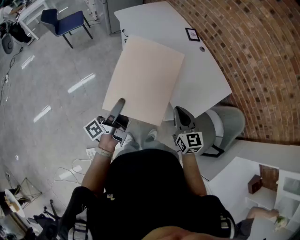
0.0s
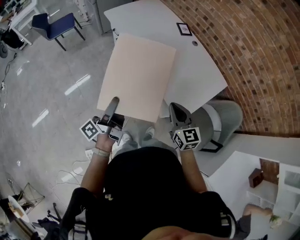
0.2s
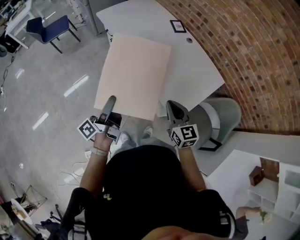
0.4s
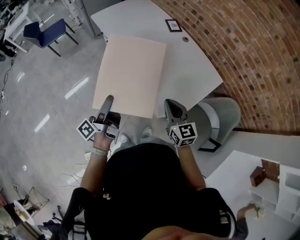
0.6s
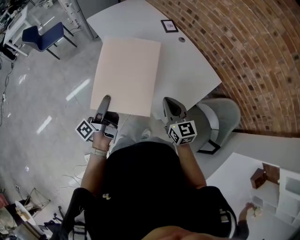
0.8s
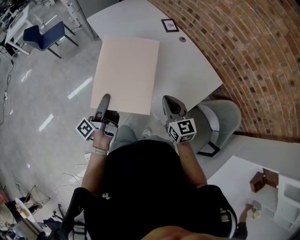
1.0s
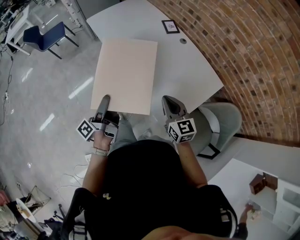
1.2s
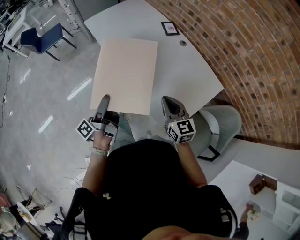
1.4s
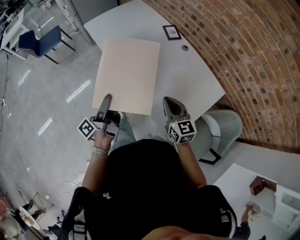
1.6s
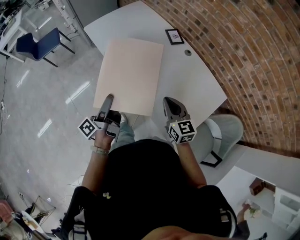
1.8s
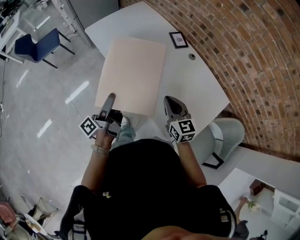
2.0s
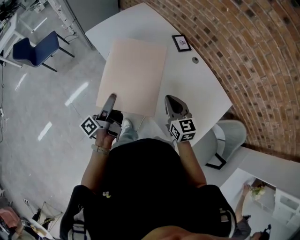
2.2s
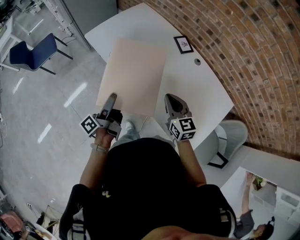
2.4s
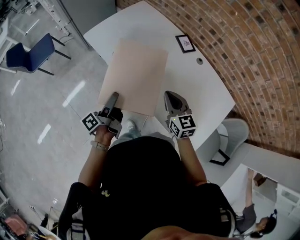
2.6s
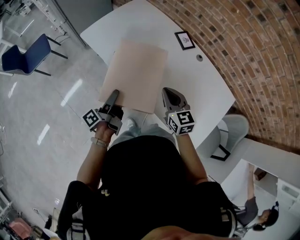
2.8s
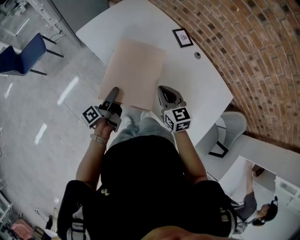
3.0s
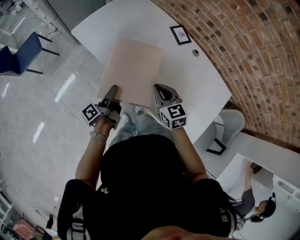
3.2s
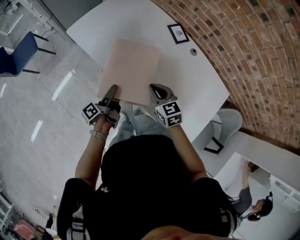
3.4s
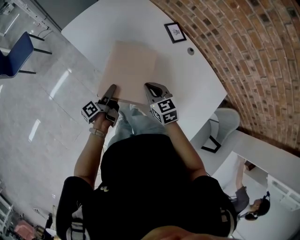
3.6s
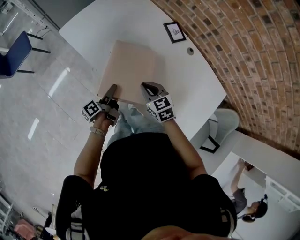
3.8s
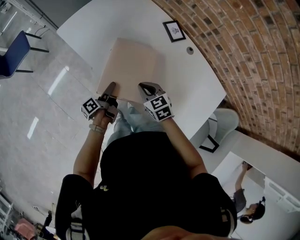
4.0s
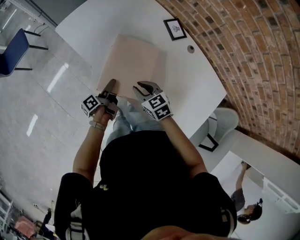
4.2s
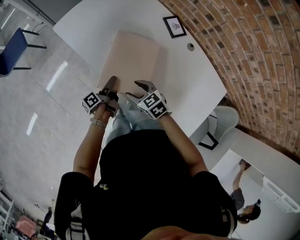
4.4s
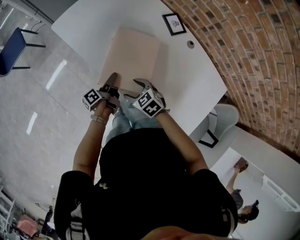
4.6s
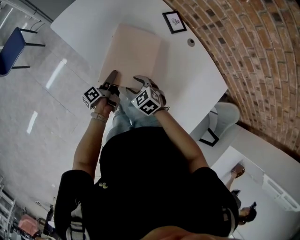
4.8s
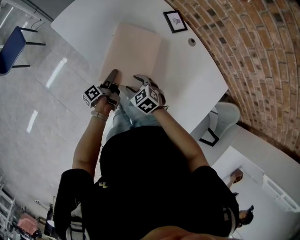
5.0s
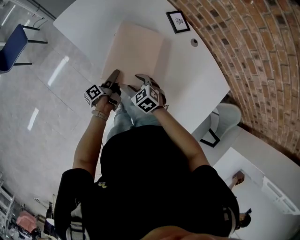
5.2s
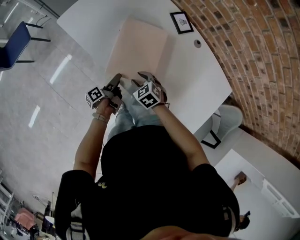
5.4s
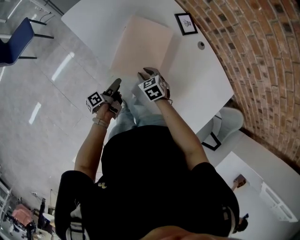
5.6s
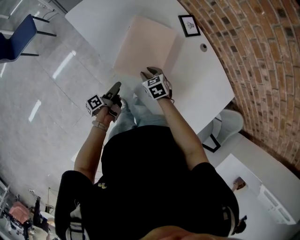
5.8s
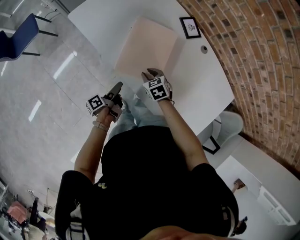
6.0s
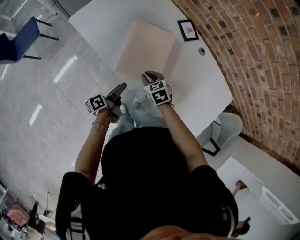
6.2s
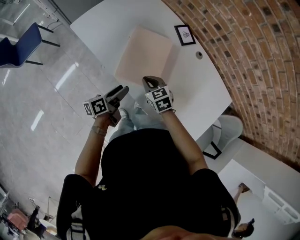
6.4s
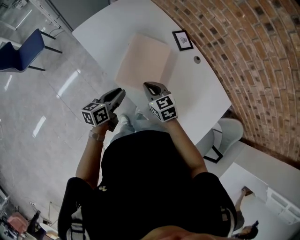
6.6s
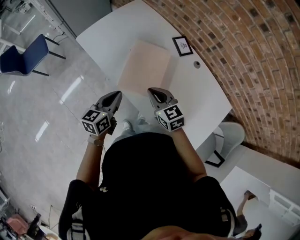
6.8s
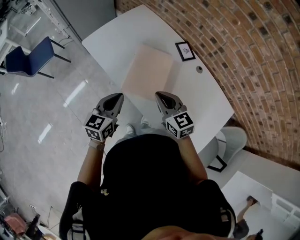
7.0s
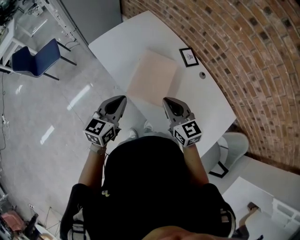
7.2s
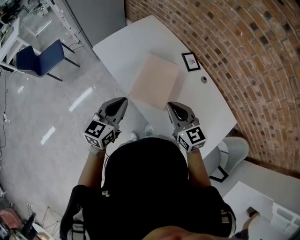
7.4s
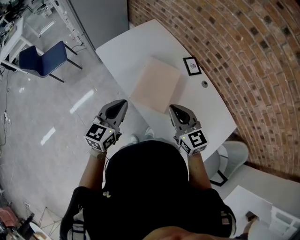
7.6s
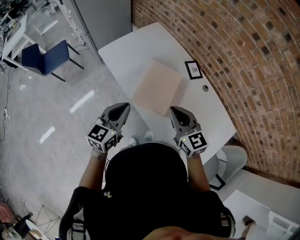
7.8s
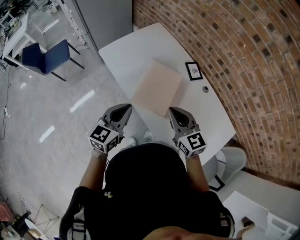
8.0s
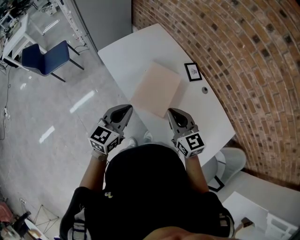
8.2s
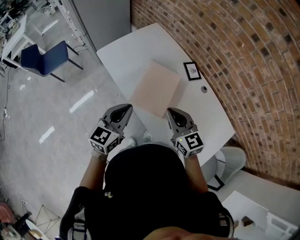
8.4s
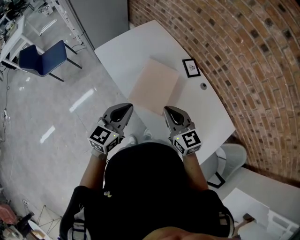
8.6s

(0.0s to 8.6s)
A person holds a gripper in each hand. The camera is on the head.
0.0s - 1.4s: The right gripper moves some 20 cm.
1.4s - 2.8s: The right gripper shifts by roughly 30 cm.
2.8s - 4.4s: The right gripper heads downward, covering roughly 15 cm, rotates some 30 degrees, and opens its fingers.
4.4s - 5.8s: The right gripper is displaced downward by some 5 cm, and closes its fingers.
5.8s - 7.2s: The right gripper shifts some 30 cm upward, tips its fingers upward by roughly 40 degrees, and closes its fingers.

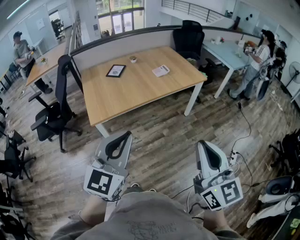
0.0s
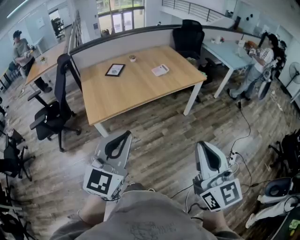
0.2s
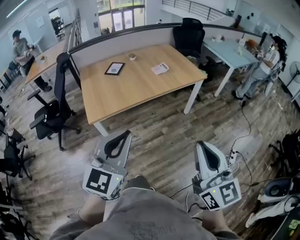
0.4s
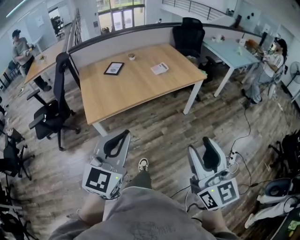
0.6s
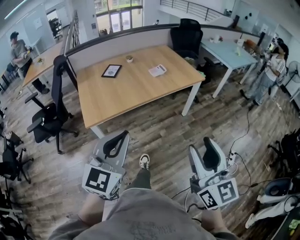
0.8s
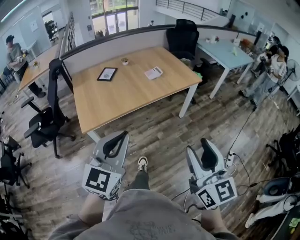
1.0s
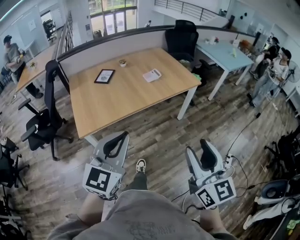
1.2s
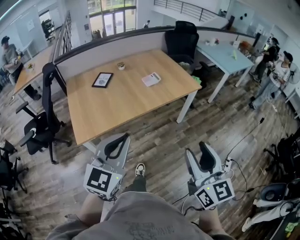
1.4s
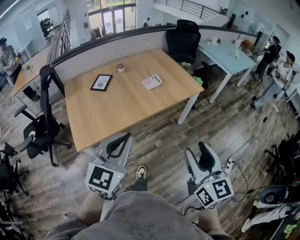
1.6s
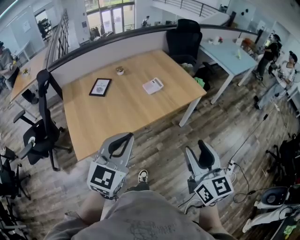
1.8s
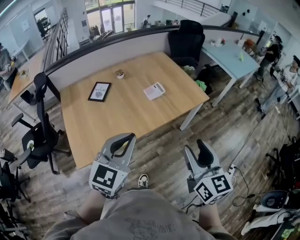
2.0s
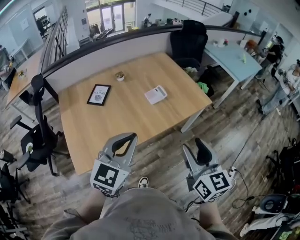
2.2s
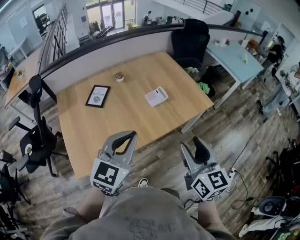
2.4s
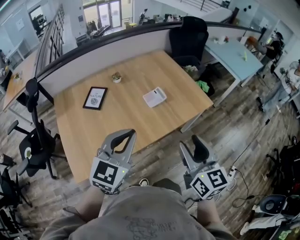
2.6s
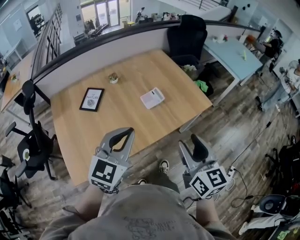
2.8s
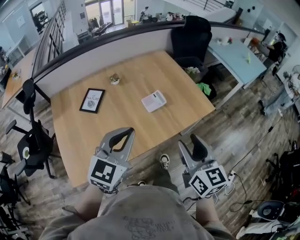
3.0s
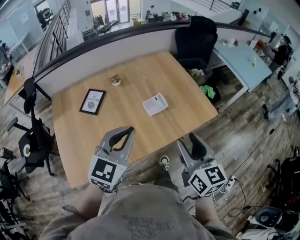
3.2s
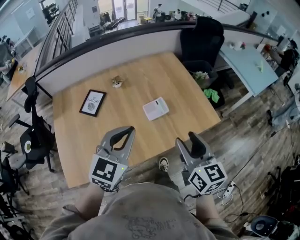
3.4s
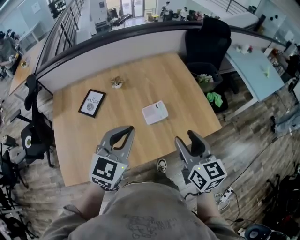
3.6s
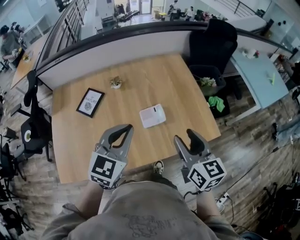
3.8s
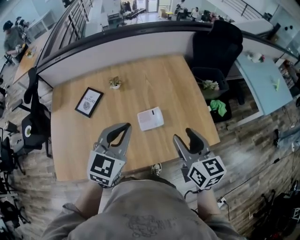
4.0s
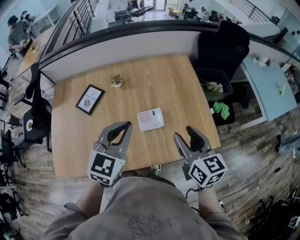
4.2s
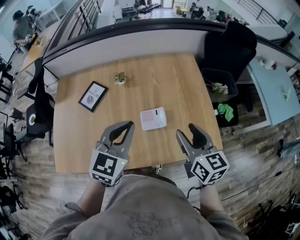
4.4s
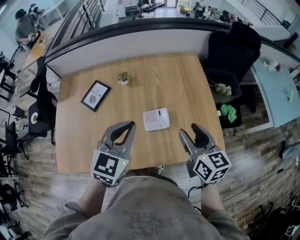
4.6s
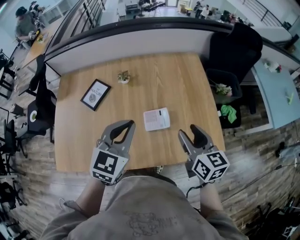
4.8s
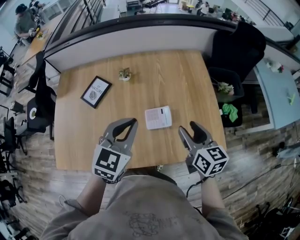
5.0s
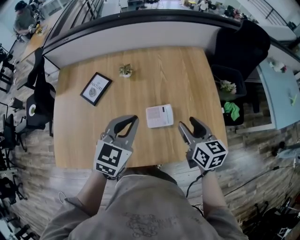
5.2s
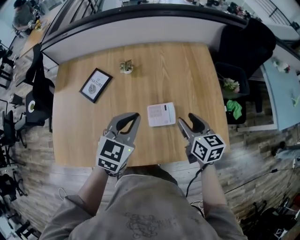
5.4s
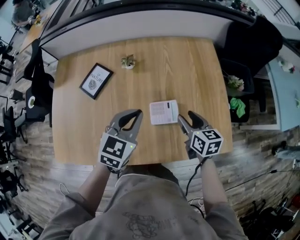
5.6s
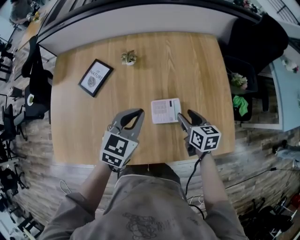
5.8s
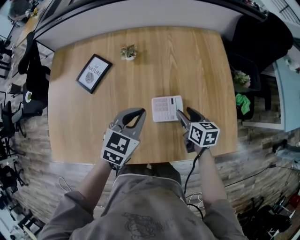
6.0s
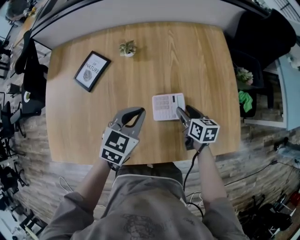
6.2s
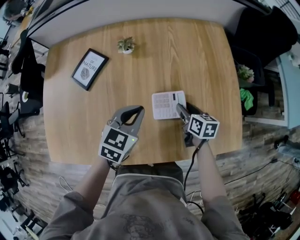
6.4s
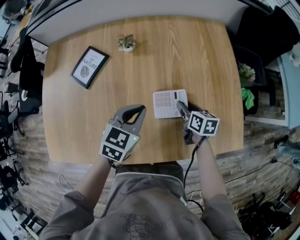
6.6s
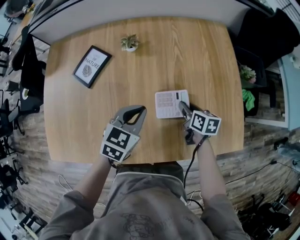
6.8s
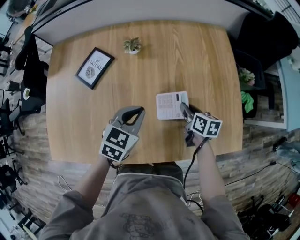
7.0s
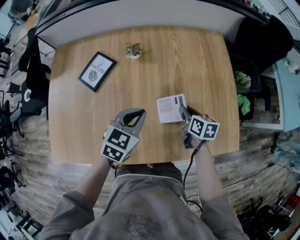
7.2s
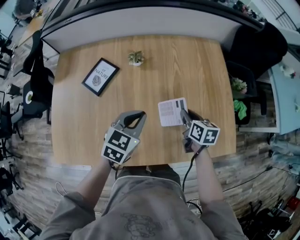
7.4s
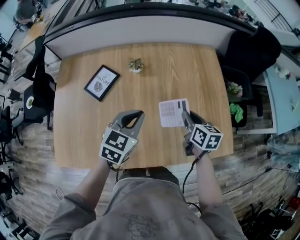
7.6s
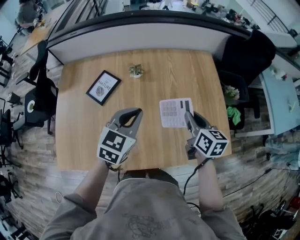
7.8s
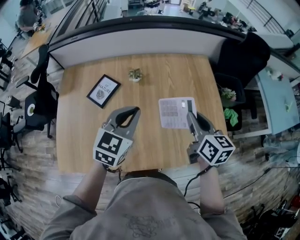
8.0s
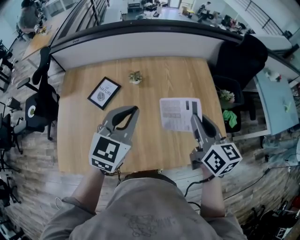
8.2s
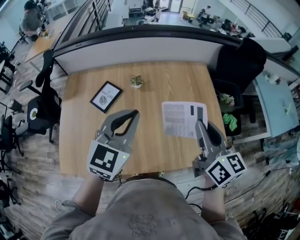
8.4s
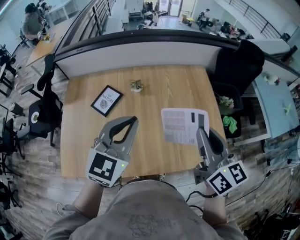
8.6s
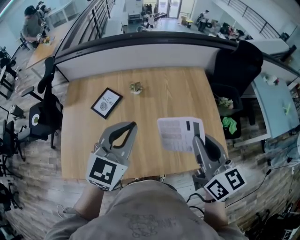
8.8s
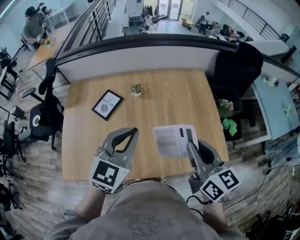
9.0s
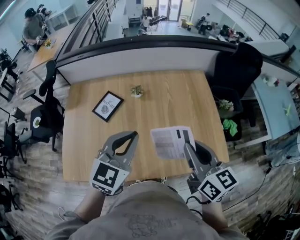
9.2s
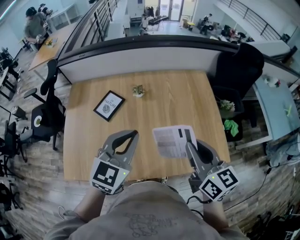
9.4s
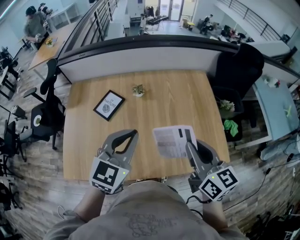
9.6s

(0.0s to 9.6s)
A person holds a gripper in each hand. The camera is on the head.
0.0s - 1.6s: Both grippers travel together forward, roughly 25 cm. The right gripper opens up.
1.6s - 3.2s: The grippers both shift forward by about 35 cm.
3.2s - 4.8s: The two grippers go approximately 25 cm forward and to the right. The right gripper changes its angle by roughly 20 degrees. The left gripper rotates some 20 degrees.
4.8s - 6.4s: The left gripper moves downward, some 20 cm; the right gripper shifts roughly 30 cm downward and forward, and rotates about 30 degrees.
6.4s - 8.0s: The right gripper shifts some 30 cm upward, swivels approximately 30 degrees, and closes. Meanwhile the left gripper moves upward, some 20 cm.
8.0s - 9.6s: The right gripper moves backward and upward, roughly 15 cm. Meanwhile the left gripper heads upward and backward, covering approximately 10 cm.

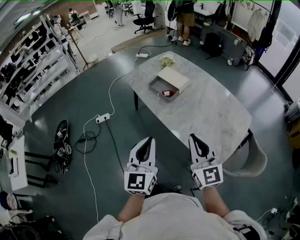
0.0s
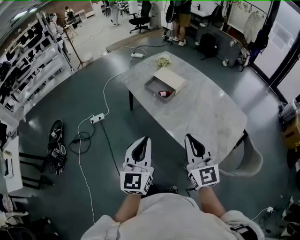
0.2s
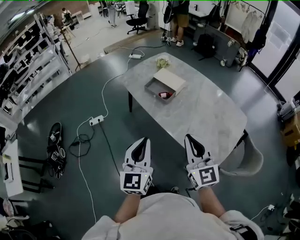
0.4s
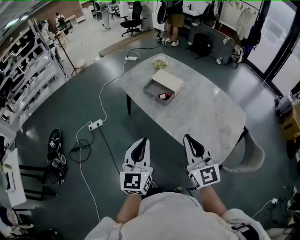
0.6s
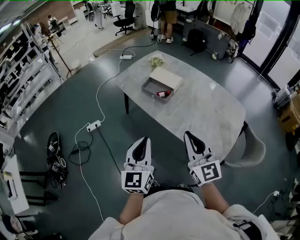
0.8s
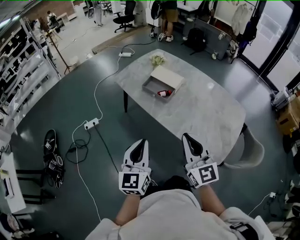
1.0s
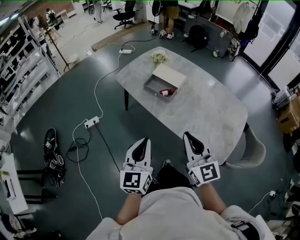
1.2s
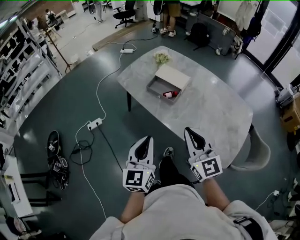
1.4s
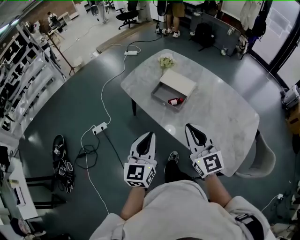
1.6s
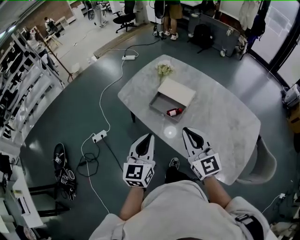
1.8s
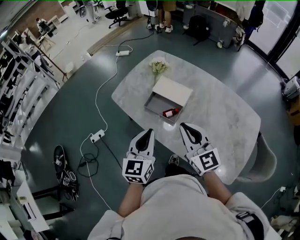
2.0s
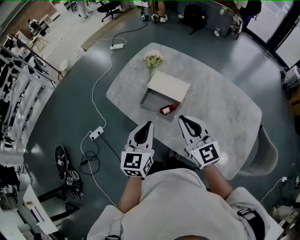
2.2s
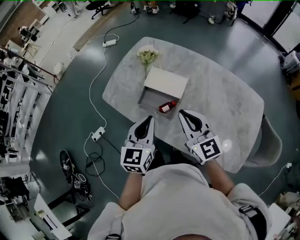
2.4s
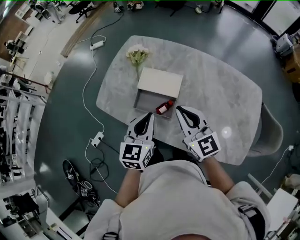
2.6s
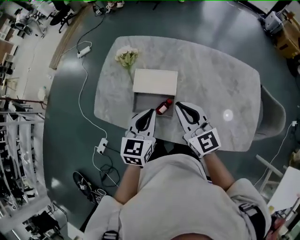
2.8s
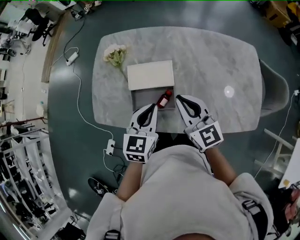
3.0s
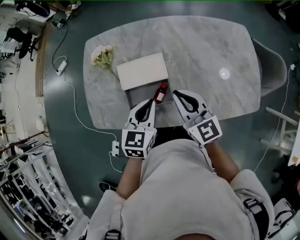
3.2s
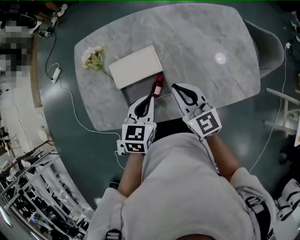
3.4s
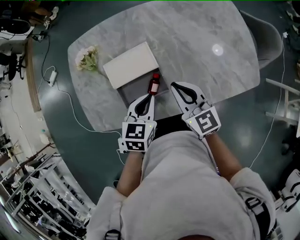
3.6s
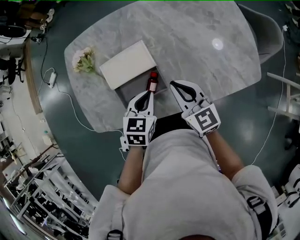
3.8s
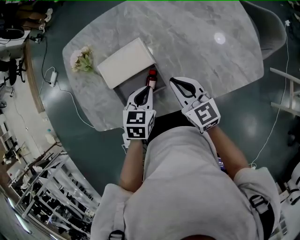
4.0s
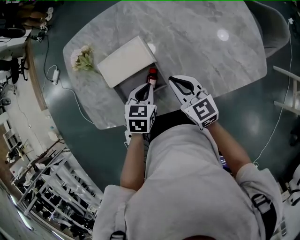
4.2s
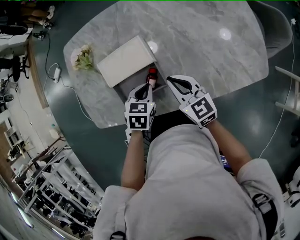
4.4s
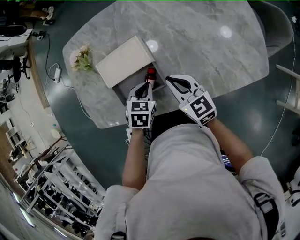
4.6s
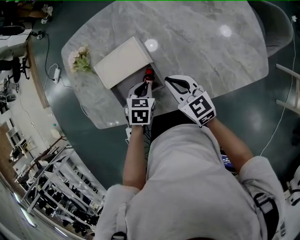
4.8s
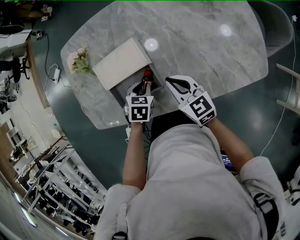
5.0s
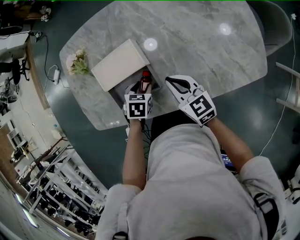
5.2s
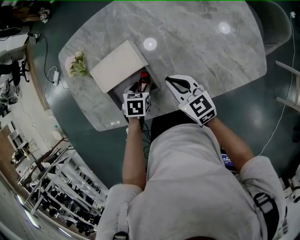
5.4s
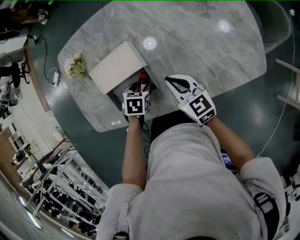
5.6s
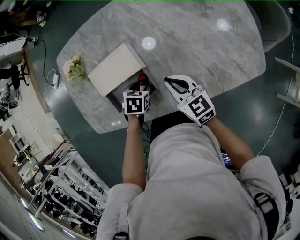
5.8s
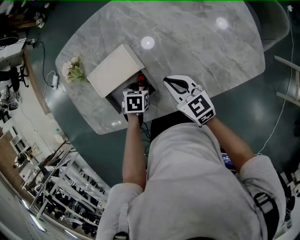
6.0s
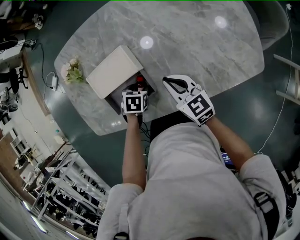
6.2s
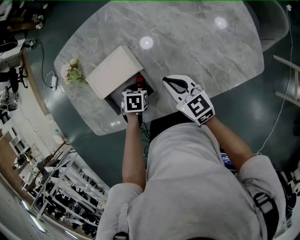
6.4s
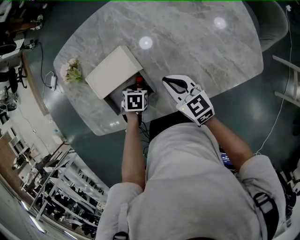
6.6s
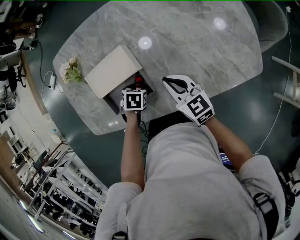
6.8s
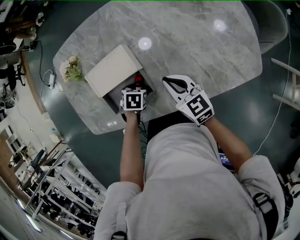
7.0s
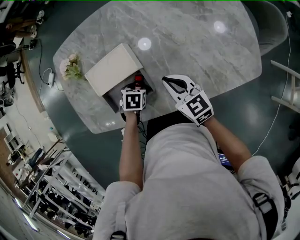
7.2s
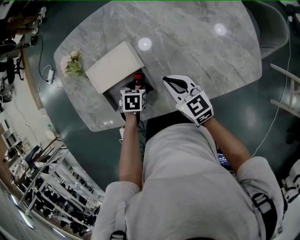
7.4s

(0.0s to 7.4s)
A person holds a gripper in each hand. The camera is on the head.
0.0s - 1.4s: The left gripper travels forward, to the left and downward by about 15 cm. Meanwhile the right gripper heads forward and to the left, covering approximately 15 cm.
1.4s - 3.0s: The right gripper moves about 35 cm, and rotates some 30 degrees, while the left gripper shifts by some 40 cm, and swivels some 50 degrees.
3.0s - 4.4s: Both grippers travel together downward, approximately 15 cm. The left gripper swivels roughly 30 degrees.
4.4s - 6.0s: The left gripper shifts about 10 cm downward, and opens its fingers, while the right gripper ends up some 5 cm from where it was.
6.0s - 7.4s: There are only small adjustments of the grippers.
